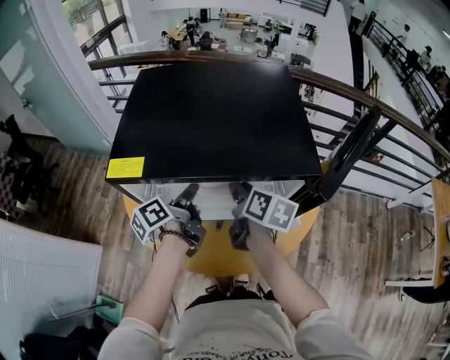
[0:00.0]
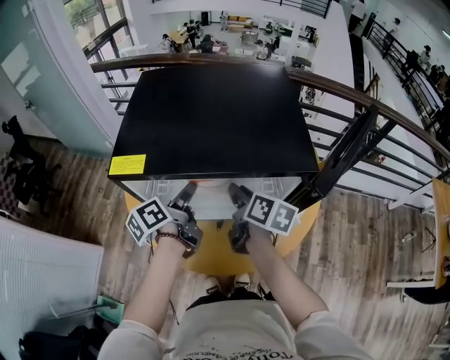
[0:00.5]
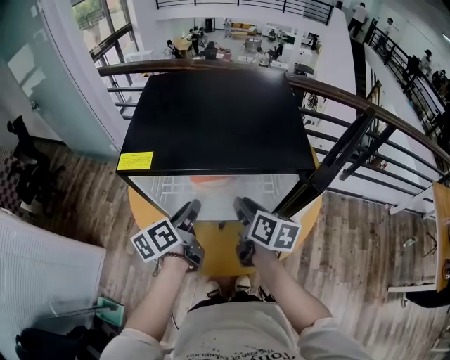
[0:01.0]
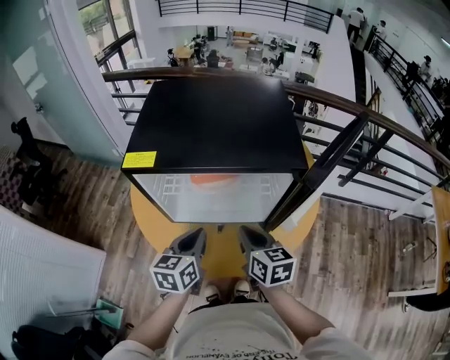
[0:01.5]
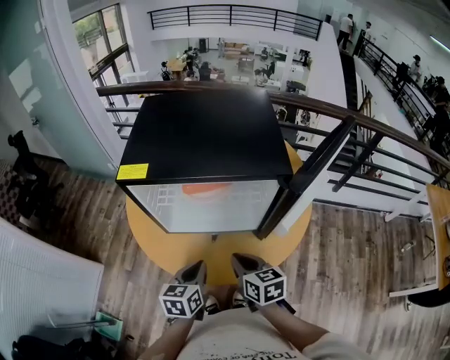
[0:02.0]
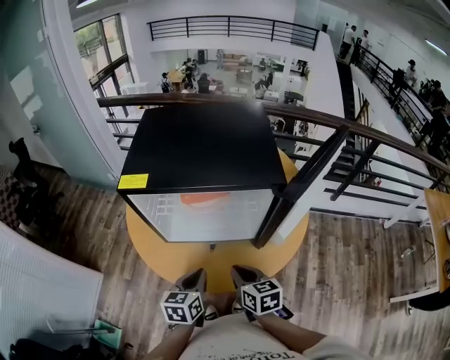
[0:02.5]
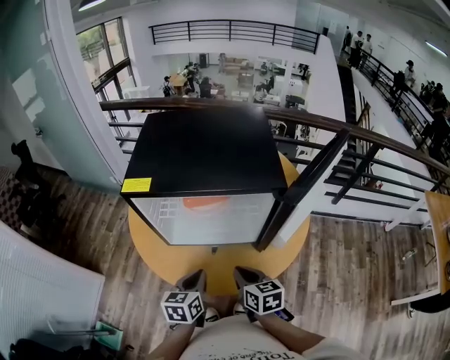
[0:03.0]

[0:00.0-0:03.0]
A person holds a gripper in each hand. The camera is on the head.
0:00.0 to 0:01.5: The right gripper shifts by about 15 cm, swivels about 30 degrees, and closes up.
0:01.5 to 0:03.0: The right gripper ends up about 10 cm from where it was.

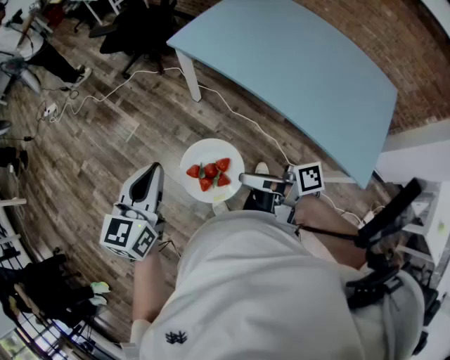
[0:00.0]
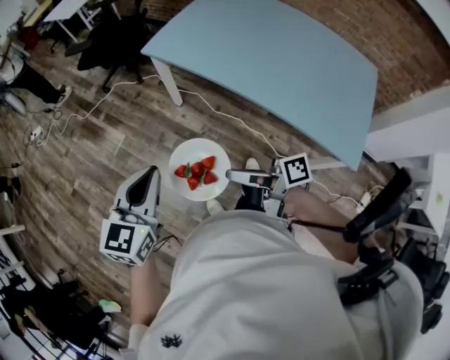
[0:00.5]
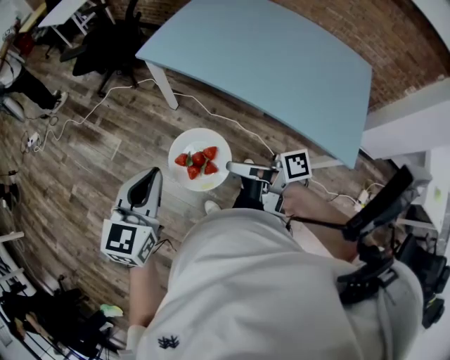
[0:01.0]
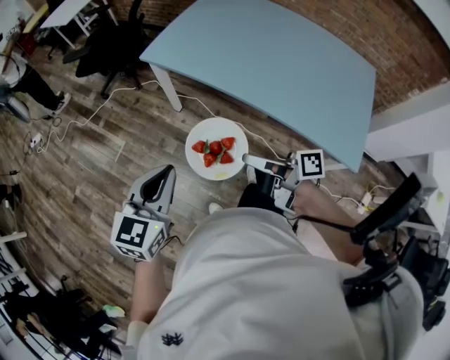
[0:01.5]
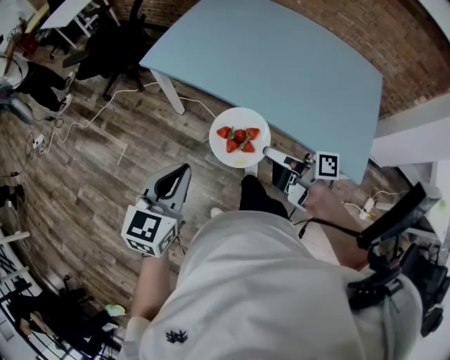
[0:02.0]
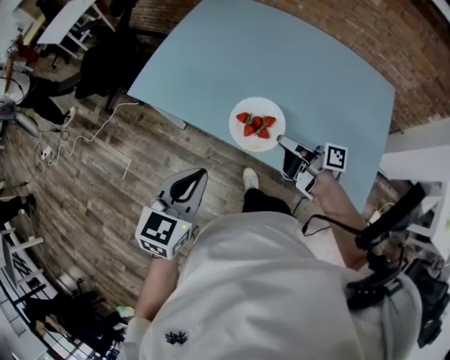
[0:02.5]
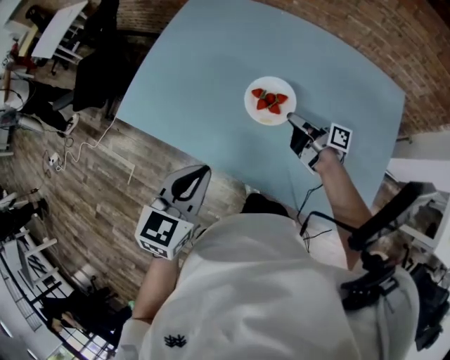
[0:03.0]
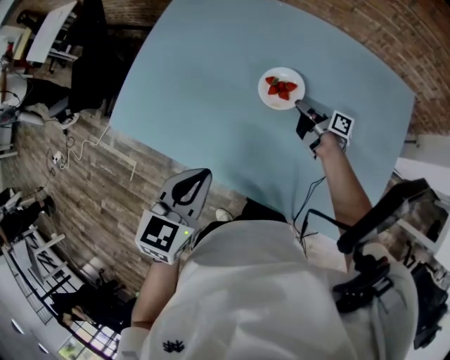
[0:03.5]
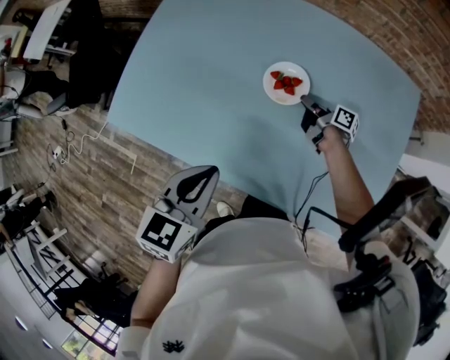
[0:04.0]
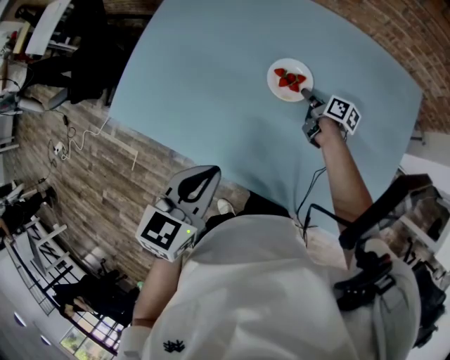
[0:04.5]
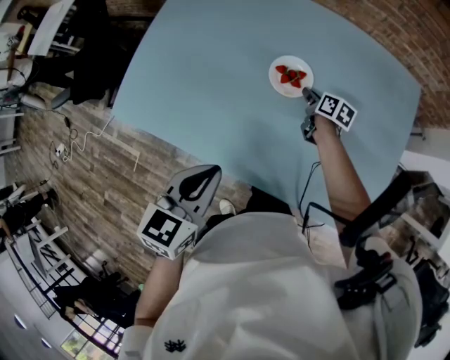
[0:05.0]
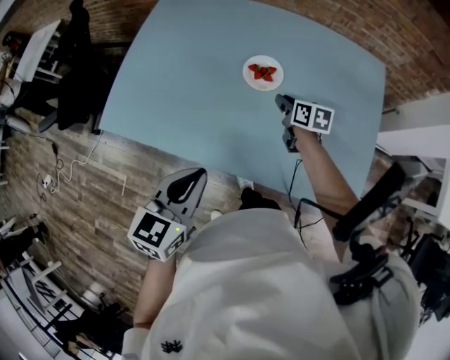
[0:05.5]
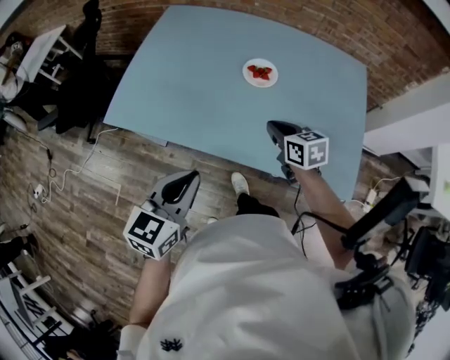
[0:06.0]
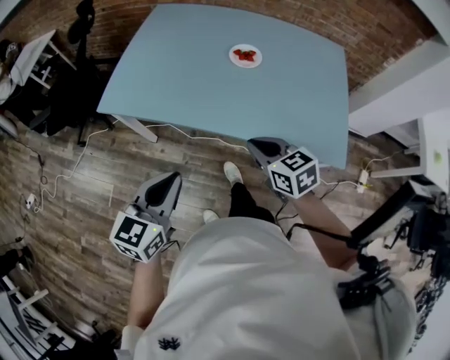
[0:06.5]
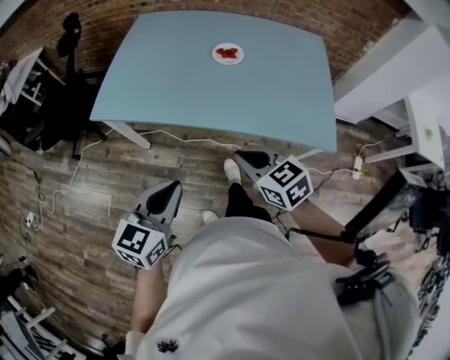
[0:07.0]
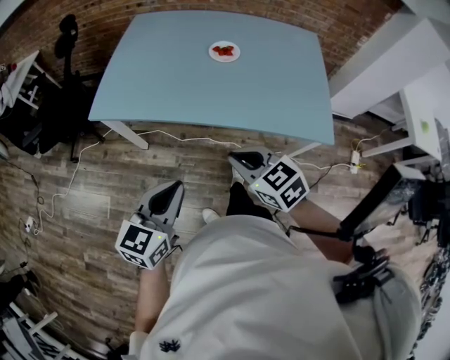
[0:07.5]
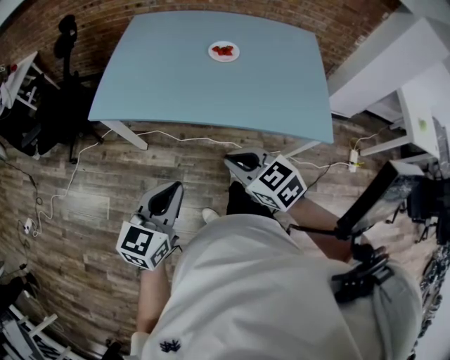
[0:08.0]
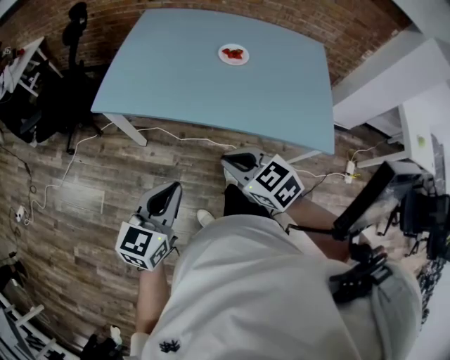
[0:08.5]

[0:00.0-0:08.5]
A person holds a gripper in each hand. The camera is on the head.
0:00.0 to 0:02.0: The right gripper travels to the right and forward by about 20 cm, and rotates some 20 degrees. The left gripper moves to the right, about 15 cm.
0:02.0 to 0:04.0: The left gripper shifts approximately 40 cm forward and to the right, while the right gripper travels forward, to the right and downward by about 60 cm, and turns by approximately 30 degrees.
0:04.0 to 0:06.5: The right gripper is displaced backward and upward by approximately 50 cm, rolls counterclockwise, seen from behind, by some 70 degrees, and opens, then closes once more, while the left gripper shifts some 30 cm backward and to the left.
0:06.5 to 0:08.5: The right gripper travels backward and to the left by roughly 15 cm. The left gripper travels backward by roughly 5 cm.

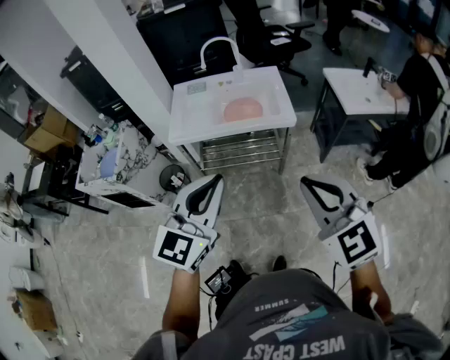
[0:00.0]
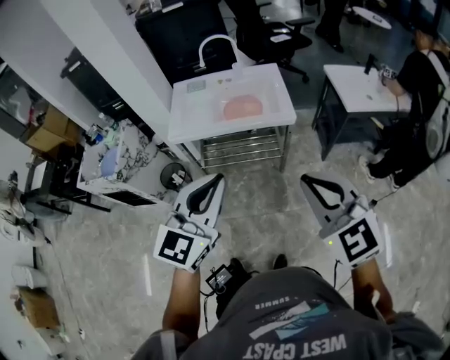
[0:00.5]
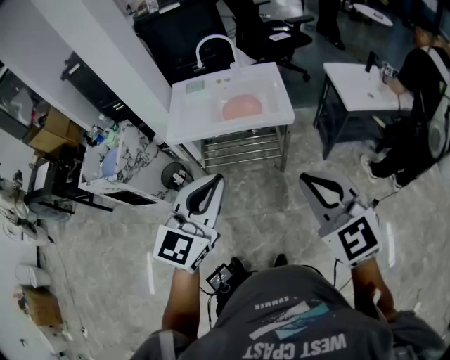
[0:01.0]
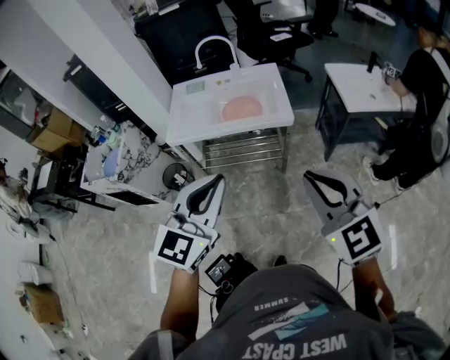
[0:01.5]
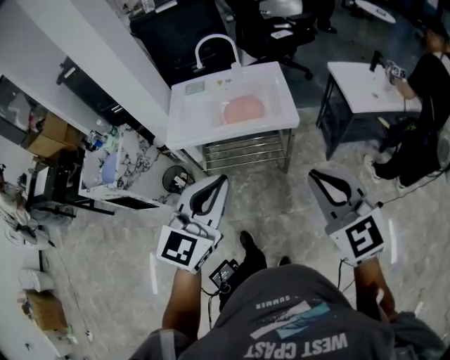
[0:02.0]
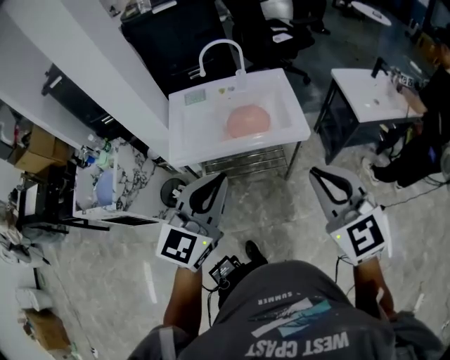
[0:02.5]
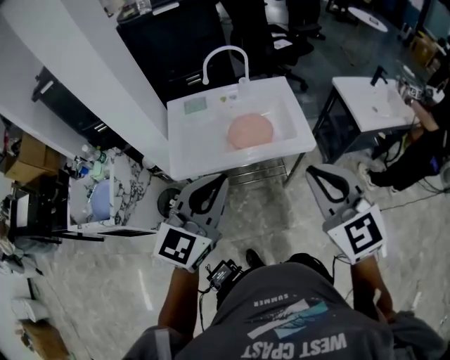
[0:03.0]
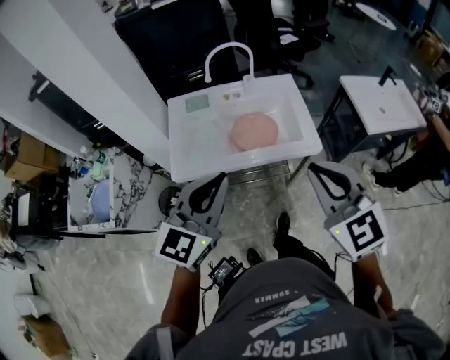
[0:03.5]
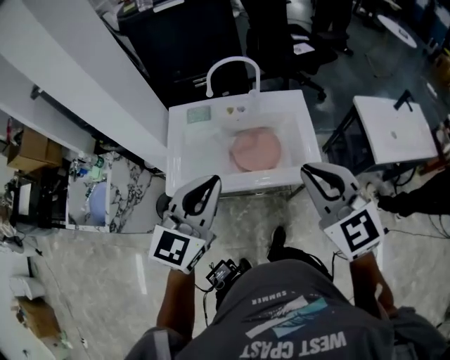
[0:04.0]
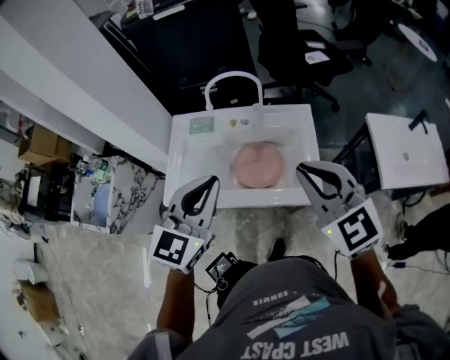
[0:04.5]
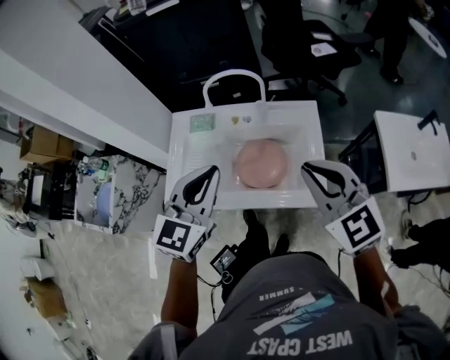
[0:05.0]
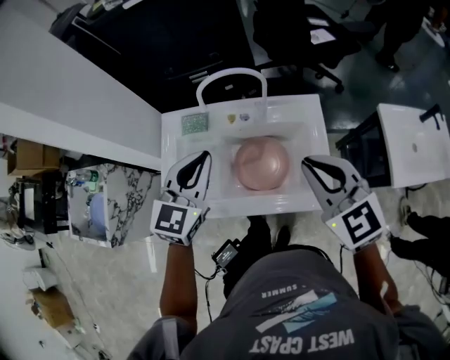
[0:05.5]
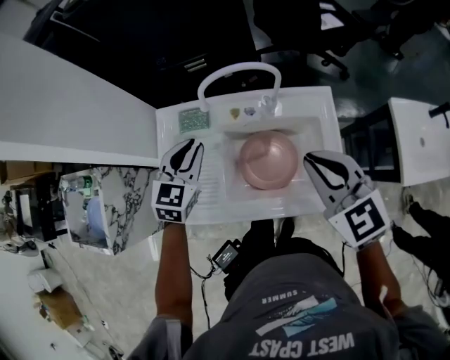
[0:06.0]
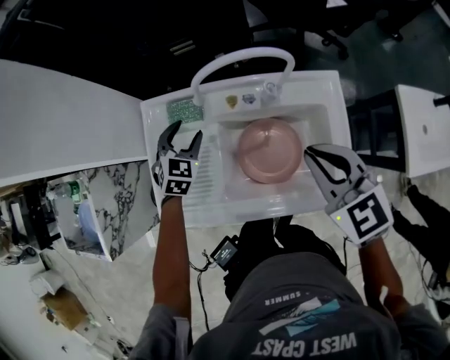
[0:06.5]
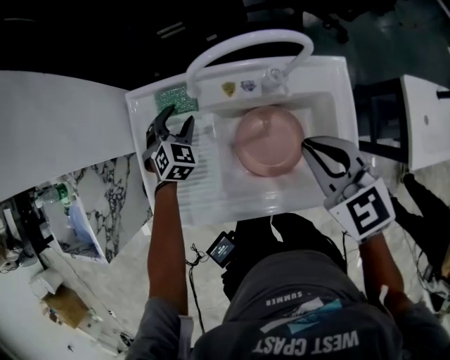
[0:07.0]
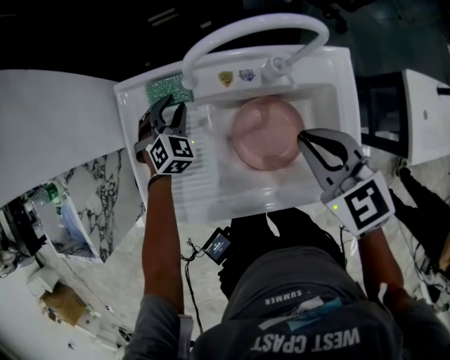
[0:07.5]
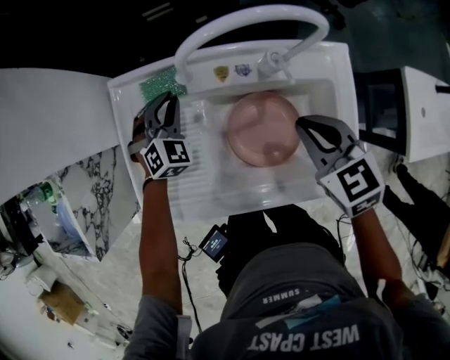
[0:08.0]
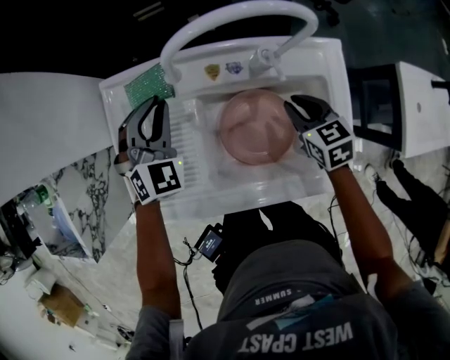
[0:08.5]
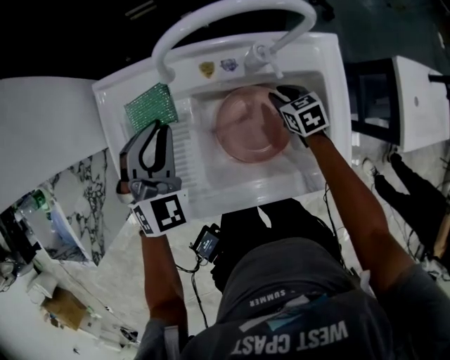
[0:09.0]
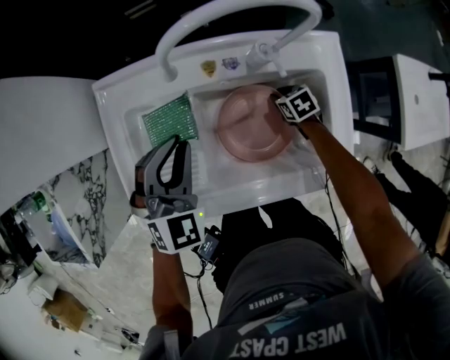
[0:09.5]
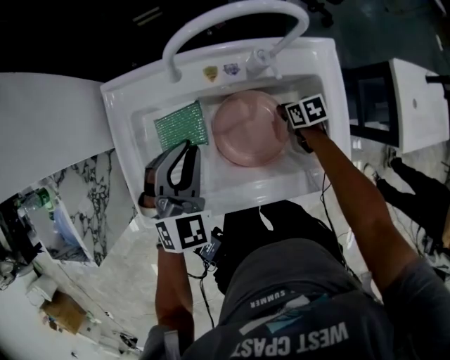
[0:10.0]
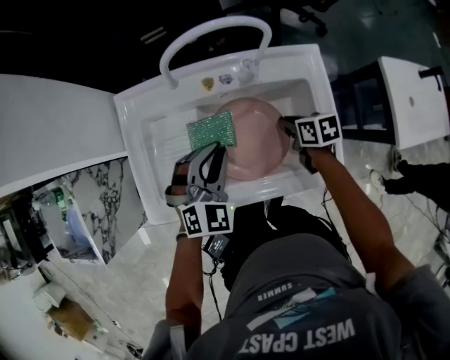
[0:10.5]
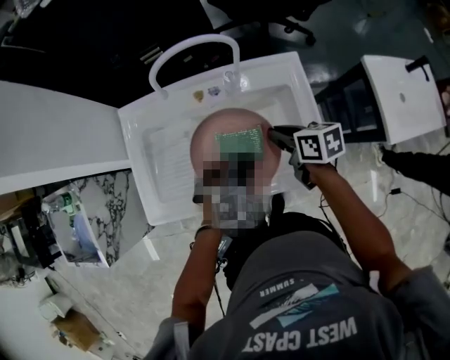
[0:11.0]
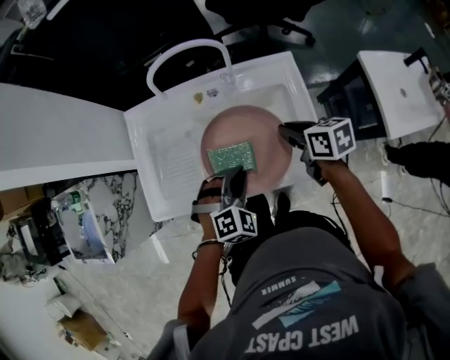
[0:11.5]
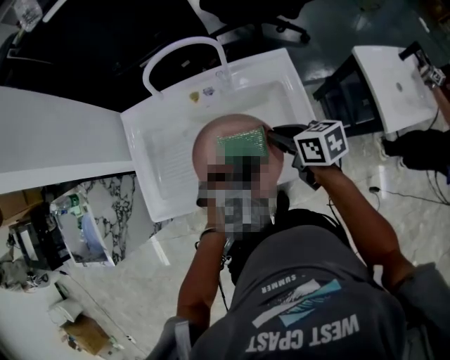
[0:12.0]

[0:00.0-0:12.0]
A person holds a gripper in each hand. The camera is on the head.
0:00.0 to 0:02.0: The grippers both shift forward by roughly 5 cm.
0:02.0 to 0:04.0: Both grippers travel together forward, roughly 30 cm.
0:04.0 to 0:06.0: Both grippers travel together forward and downward, about 30 cm. The left gripper changes its angle by approximately 20 degrees.
0:06.0 to 0:08.0: The two grippers go some 20 cm downward and forward. The left gripper turns by roughly 30 degrees, and opens, then closes once more.
0:08.0 to 0:10.0: The right gripper is displaced downward by some 25 cm, swivels some 40 degrees, and opens, then closes again; the left gripper shifts some 20 cm backward and upward.
0:10.0 to 0:12.0: The right gripper goes roughly 25 cm upward, and swivels about 30 degrees. The left gripper travels to the right and backward by roughly 20 cm, and swivels about 30 degrees.

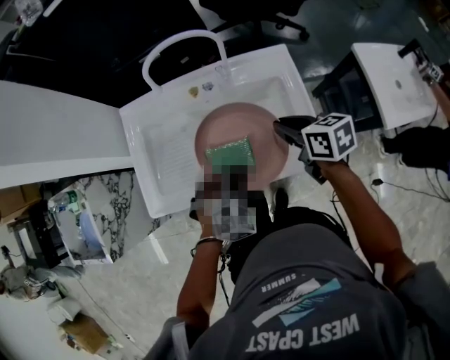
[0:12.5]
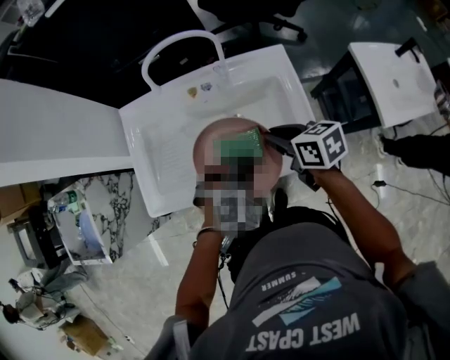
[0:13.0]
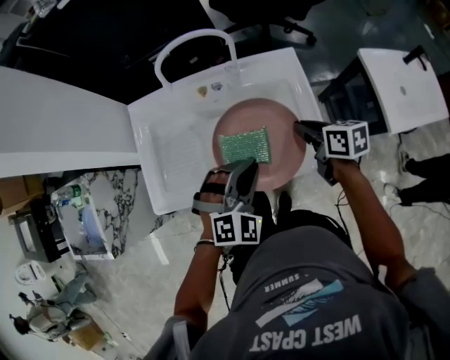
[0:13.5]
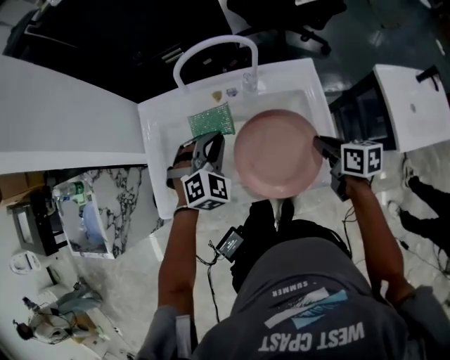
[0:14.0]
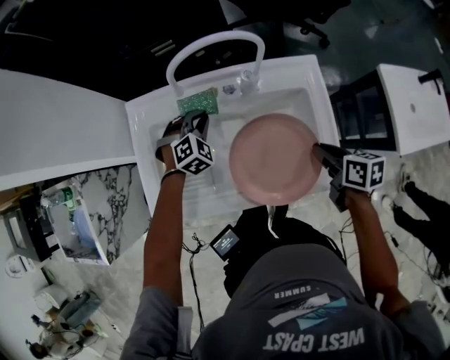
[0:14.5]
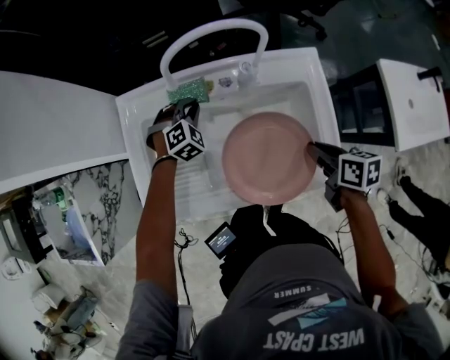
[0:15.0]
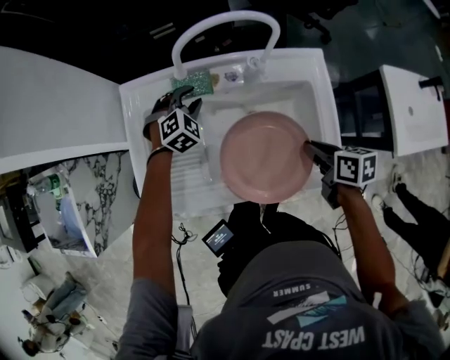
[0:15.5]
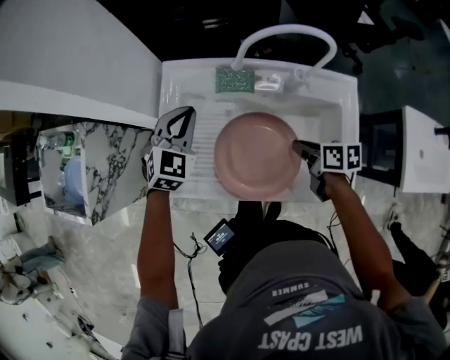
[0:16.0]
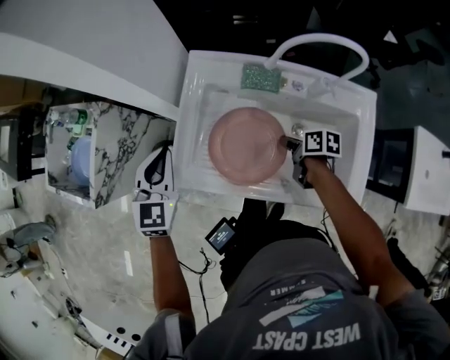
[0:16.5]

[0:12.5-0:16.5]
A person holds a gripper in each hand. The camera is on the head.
0:12.5 to 0:14.5: The left gripper goes approximately 25 cm forward. Meanwhile the right gripper heads downward, covering some 5 cm.
0:14.5 to 0:16.5: The right gripper changes place by about 25 cm, and changes its angle by about 20 degrees; the left gripper ends up approximately 35 cm from where it was, rotates around the line of its fingers by about 50 degrees, counterclockwise from behind, and opens, then closes once more.
